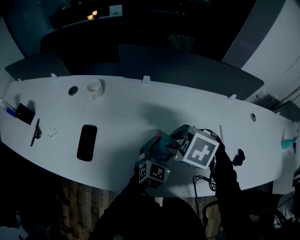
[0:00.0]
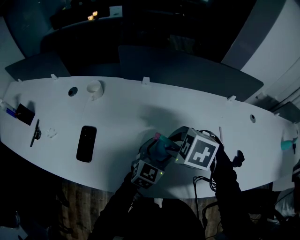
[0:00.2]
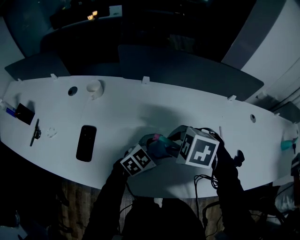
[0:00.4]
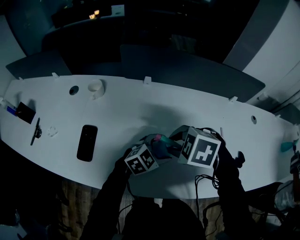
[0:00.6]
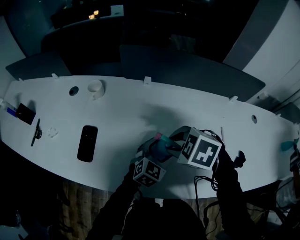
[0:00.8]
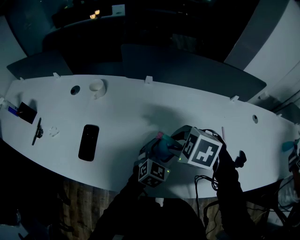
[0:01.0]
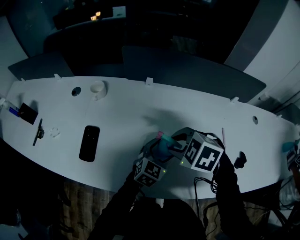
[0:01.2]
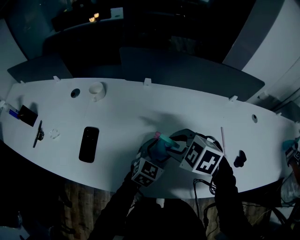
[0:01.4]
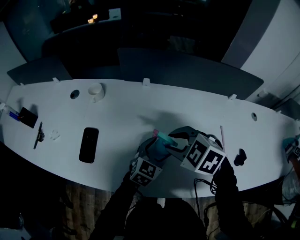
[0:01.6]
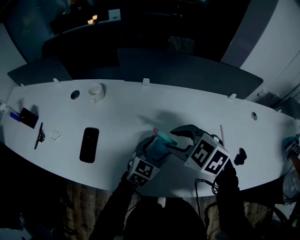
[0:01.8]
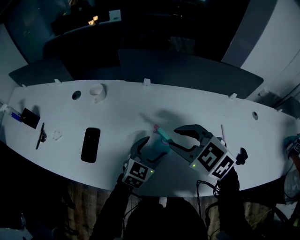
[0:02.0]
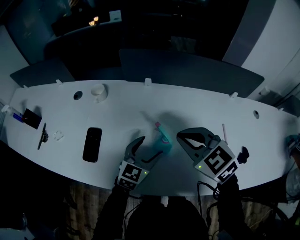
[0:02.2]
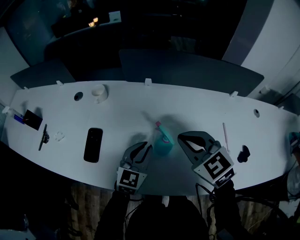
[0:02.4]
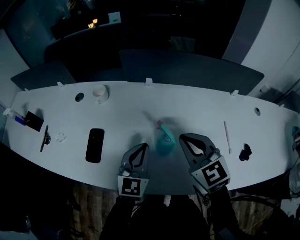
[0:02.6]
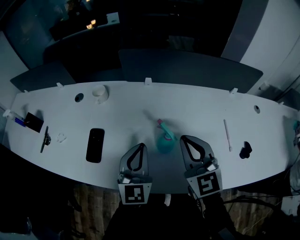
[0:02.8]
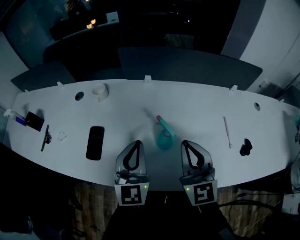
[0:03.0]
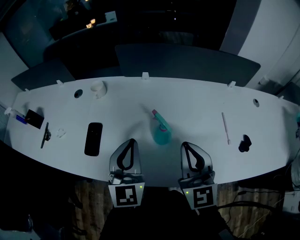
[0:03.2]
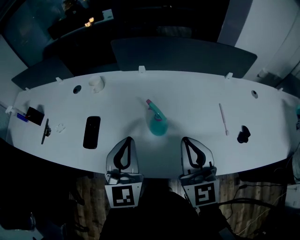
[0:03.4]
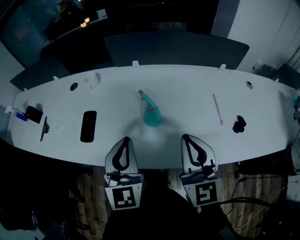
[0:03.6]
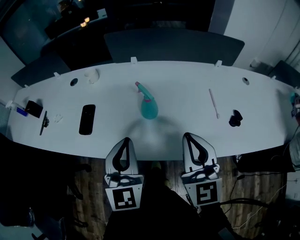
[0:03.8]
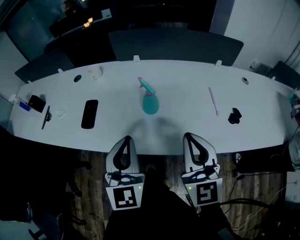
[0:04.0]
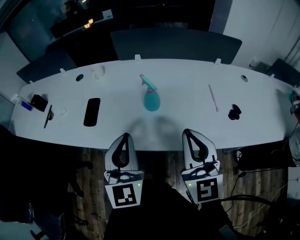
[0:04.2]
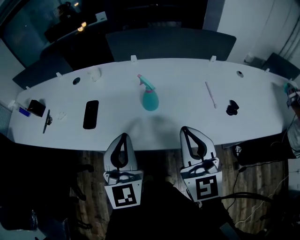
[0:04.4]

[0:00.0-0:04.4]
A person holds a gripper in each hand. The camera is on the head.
0:01.4 to 0:03.0: The right gripper travels upward by some 10 cm, tilts its fingers about 60 degrees upward, and closes. The left gripper goes roughly 20 cm upward and to the left, turns by some 40 degrees, and closes its fingers.
0:03.0 to 0:04.4: The two grippers go some 20 cm backward.

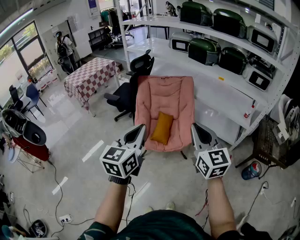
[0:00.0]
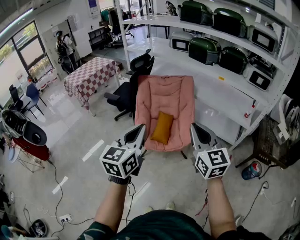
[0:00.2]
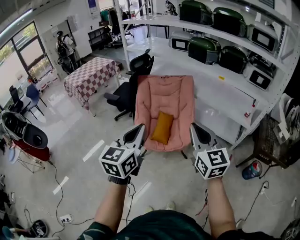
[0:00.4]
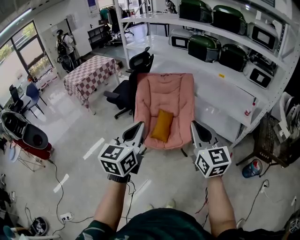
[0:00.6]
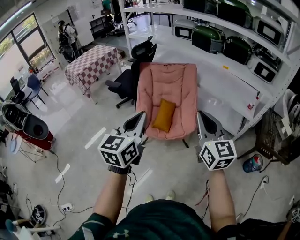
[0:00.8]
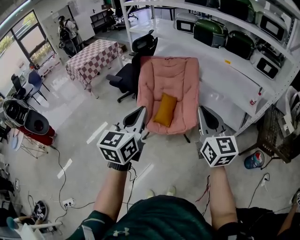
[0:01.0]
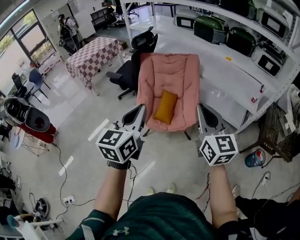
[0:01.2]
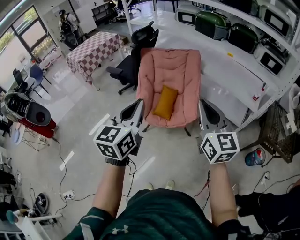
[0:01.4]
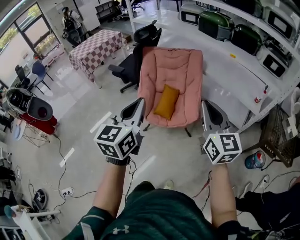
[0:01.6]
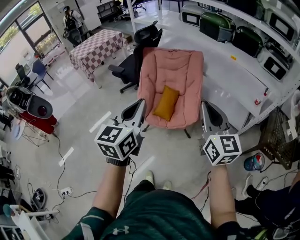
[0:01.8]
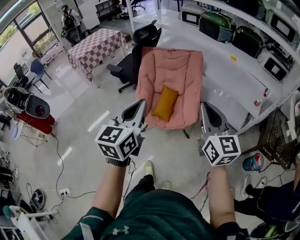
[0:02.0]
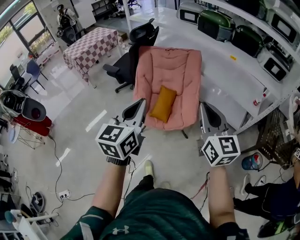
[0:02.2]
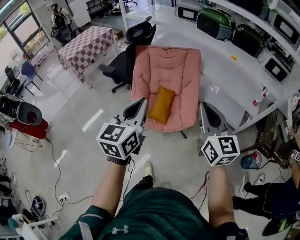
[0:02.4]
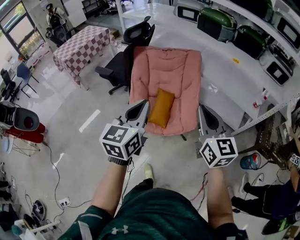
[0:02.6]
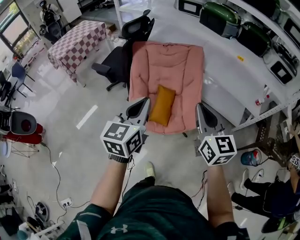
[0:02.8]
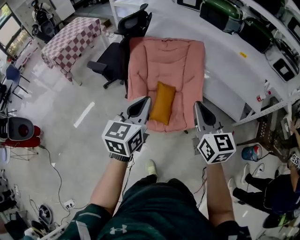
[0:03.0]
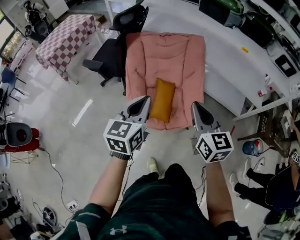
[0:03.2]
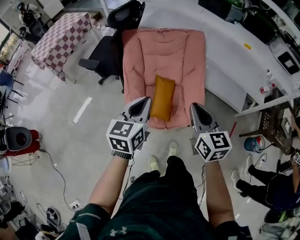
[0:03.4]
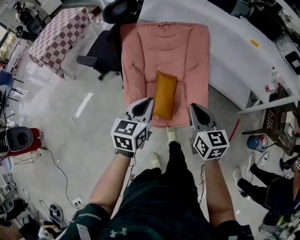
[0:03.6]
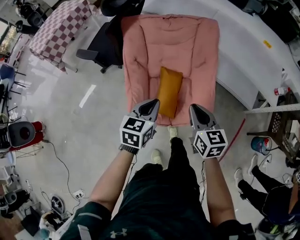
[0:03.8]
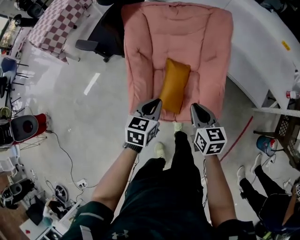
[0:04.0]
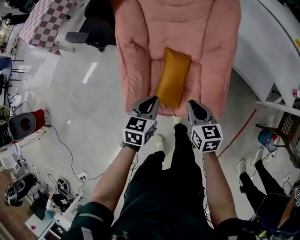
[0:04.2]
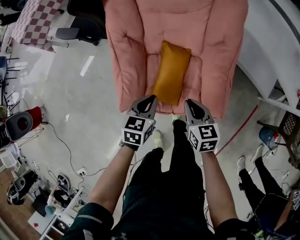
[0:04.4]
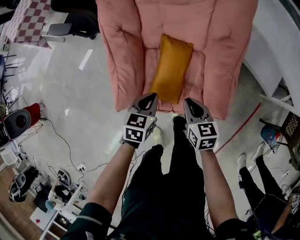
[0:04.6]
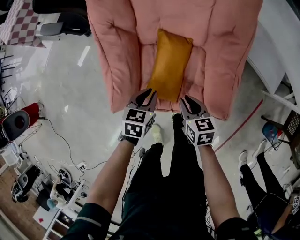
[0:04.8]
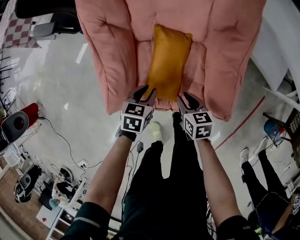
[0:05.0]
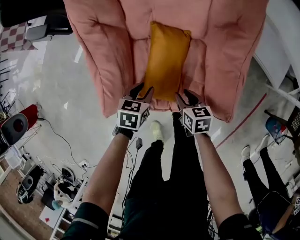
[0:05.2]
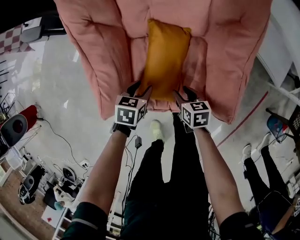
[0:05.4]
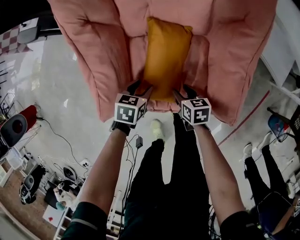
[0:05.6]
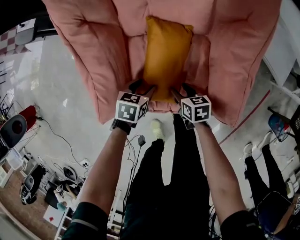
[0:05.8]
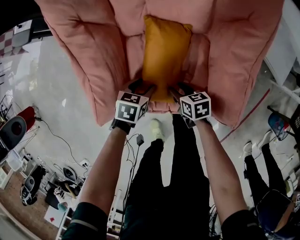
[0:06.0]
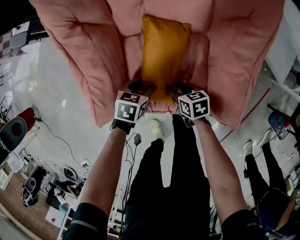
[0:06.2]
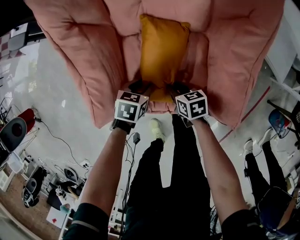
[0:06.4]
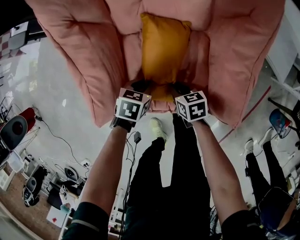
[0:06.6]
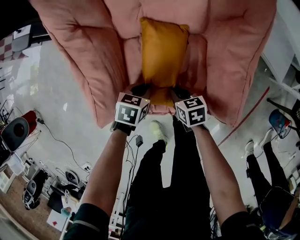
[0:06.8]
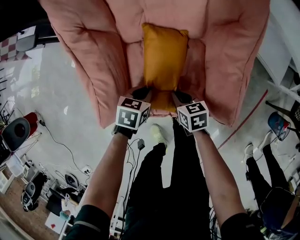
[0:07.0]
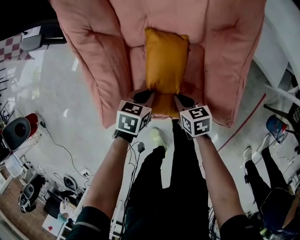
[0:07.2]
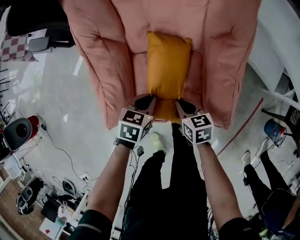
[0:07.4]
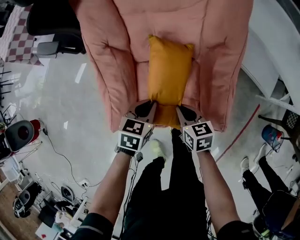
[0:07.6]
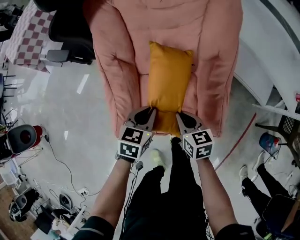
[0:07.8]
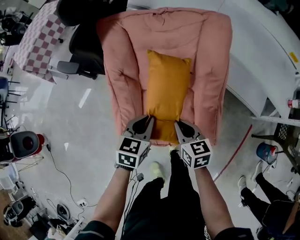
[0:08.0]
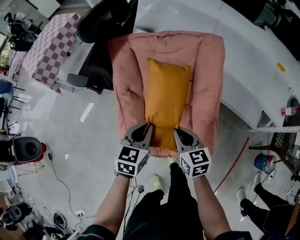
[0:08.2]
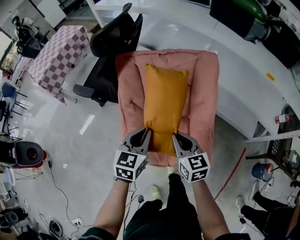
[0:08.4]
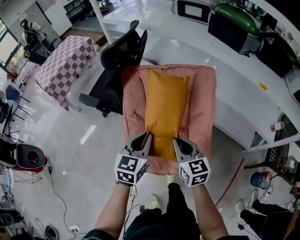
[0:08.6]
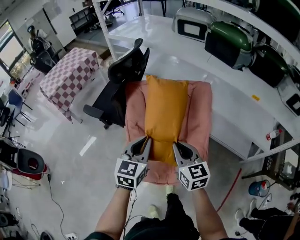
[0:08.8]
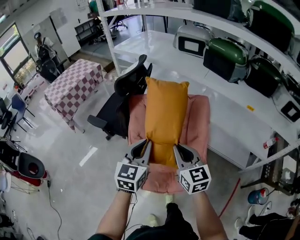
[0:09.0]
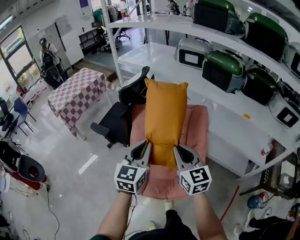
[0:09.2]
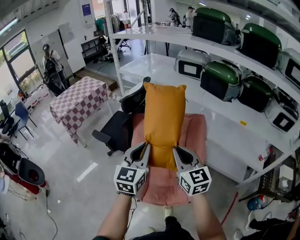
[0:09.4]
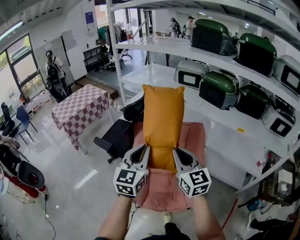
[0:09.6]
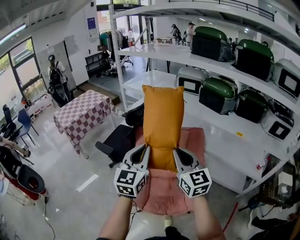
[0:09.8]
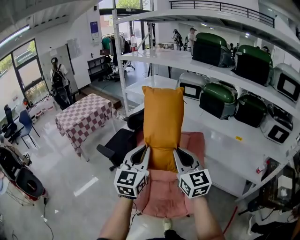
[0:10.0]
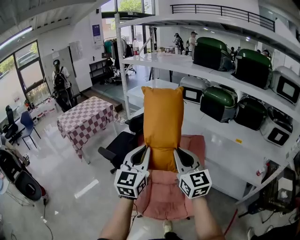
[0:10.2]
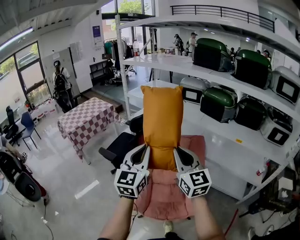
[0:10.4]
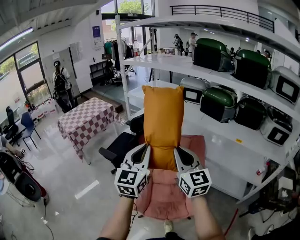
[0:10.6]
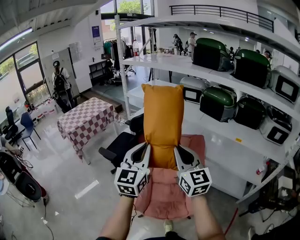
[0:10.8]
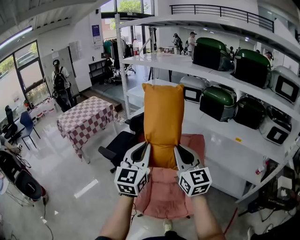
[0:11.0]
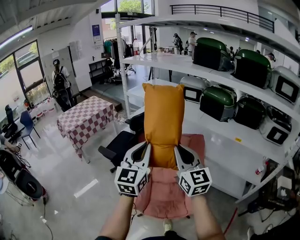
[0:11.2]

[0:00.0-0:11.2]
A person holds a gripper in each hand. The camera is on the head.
0:00.0 to 0:01.6: The right gripper travels to the right by roughly 5 cm.
0:01.6 to 0:03.2: The left gripper moves forward and downward, some 30 cm. The right gripper shifts about 30 cm forward, downward and to the left.
0:03.2 to 0:04.8: The two grippers go roughly 50 cm downward. The left gripper angles its fingers downward, by approximately 40 degrees, while the right gripper tips its fingers downward by approximately 30 degrees.
0:04.8 to 0:06.4: Both grippers travel together downward, roughly 20 cm. The right gripper opens, then closes again; the left gripper opens up.
0:06.4 to 0:08.0: The two grippers go some 35 cm upward. The left gripper turns by about 30 degrees, and closes its fingers. Meanwhile the right gripper swivels approximately 30 degrees.
0:08.0 to 0:09.6: Both grippers move upward, roughly 40 cm. The right gripper angles its fingers upward, by about 30 degrees. The left gripper angles its fingers upward, by approximately 40 degrees.
0:09.6 to 0:11.2: The grippers both shift upward by roughly 10 cm.

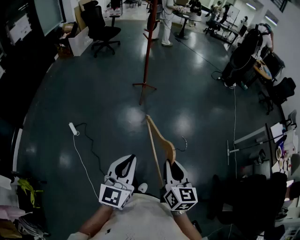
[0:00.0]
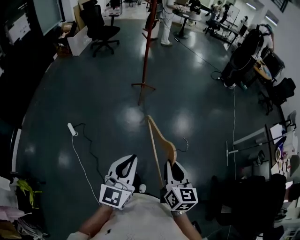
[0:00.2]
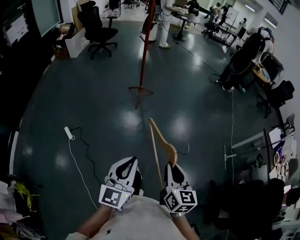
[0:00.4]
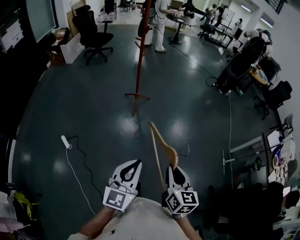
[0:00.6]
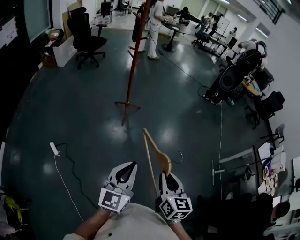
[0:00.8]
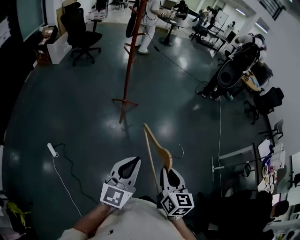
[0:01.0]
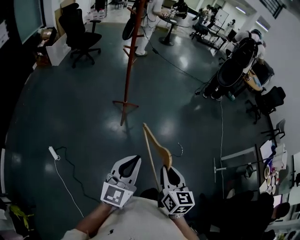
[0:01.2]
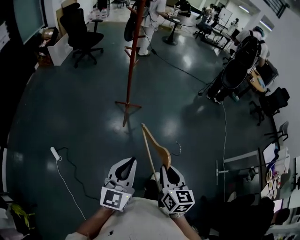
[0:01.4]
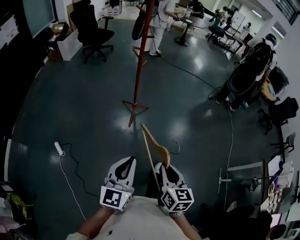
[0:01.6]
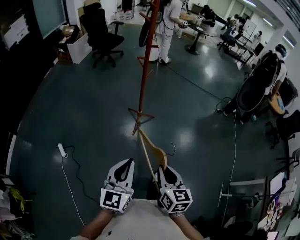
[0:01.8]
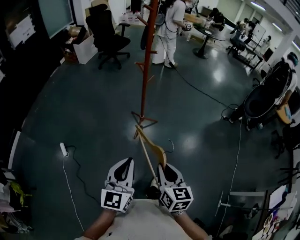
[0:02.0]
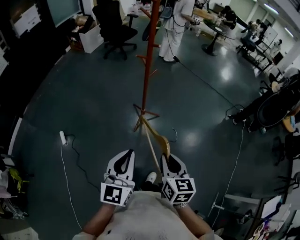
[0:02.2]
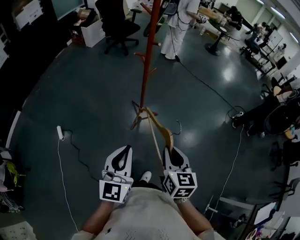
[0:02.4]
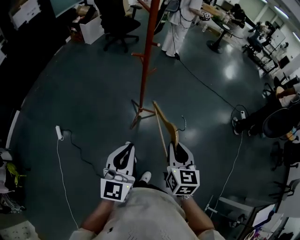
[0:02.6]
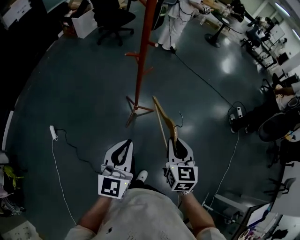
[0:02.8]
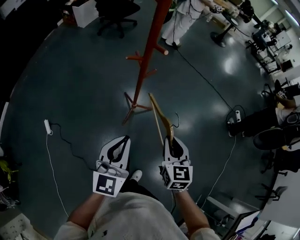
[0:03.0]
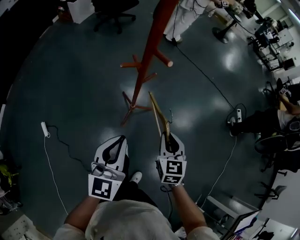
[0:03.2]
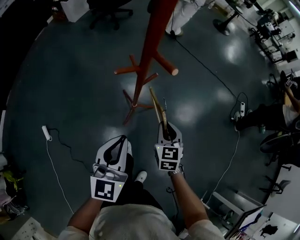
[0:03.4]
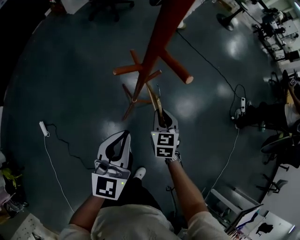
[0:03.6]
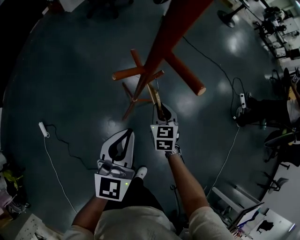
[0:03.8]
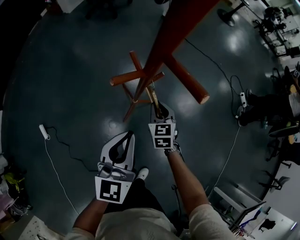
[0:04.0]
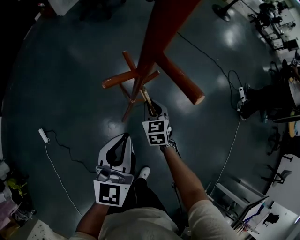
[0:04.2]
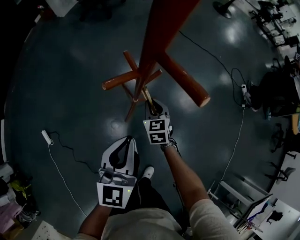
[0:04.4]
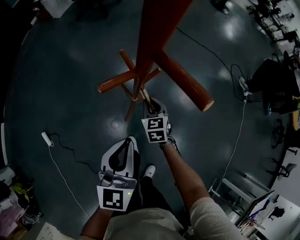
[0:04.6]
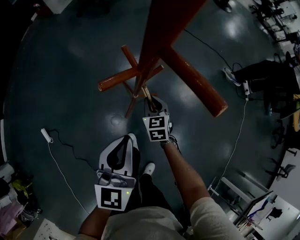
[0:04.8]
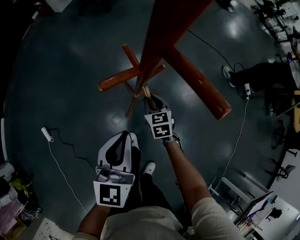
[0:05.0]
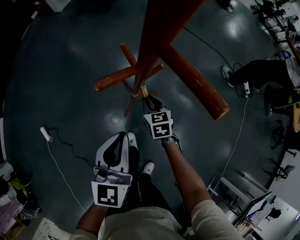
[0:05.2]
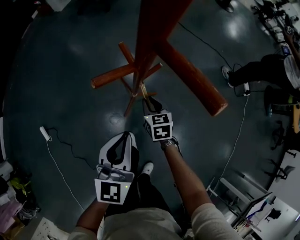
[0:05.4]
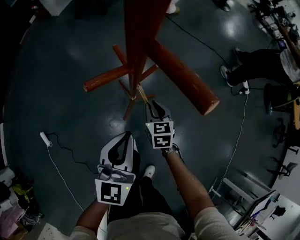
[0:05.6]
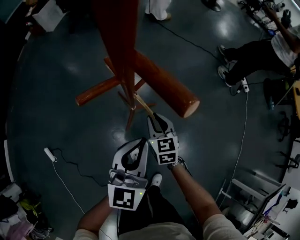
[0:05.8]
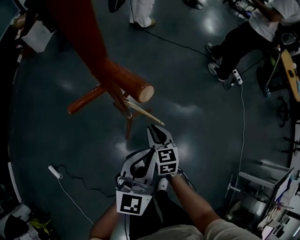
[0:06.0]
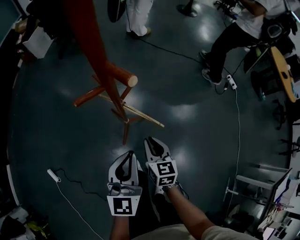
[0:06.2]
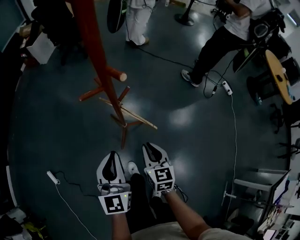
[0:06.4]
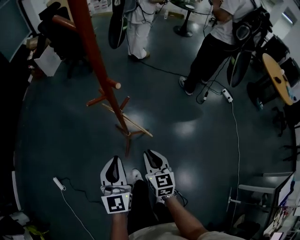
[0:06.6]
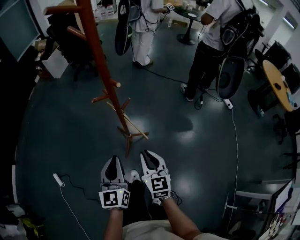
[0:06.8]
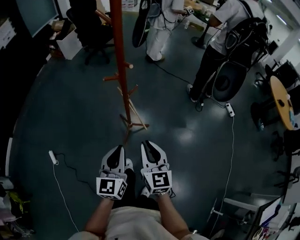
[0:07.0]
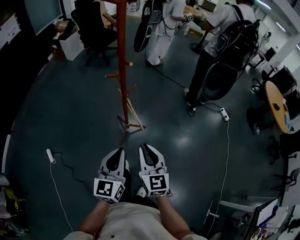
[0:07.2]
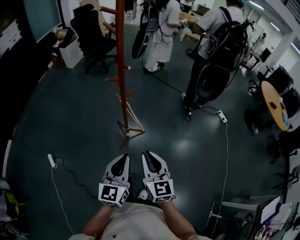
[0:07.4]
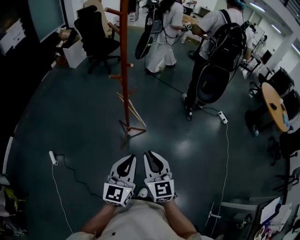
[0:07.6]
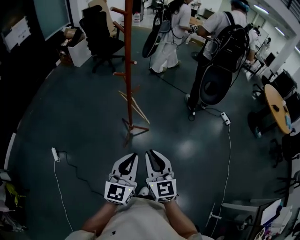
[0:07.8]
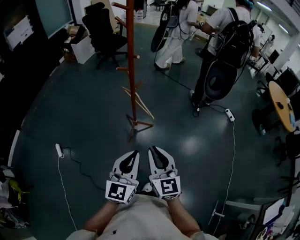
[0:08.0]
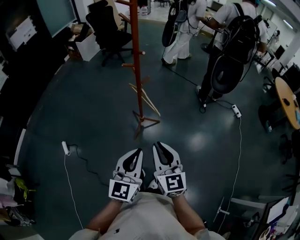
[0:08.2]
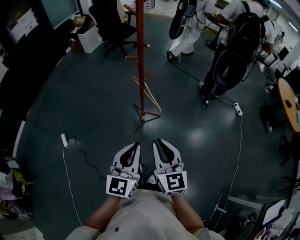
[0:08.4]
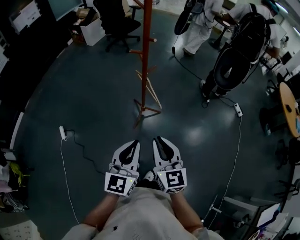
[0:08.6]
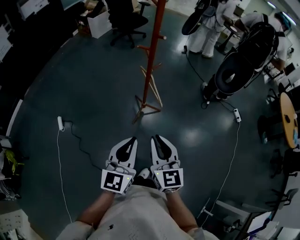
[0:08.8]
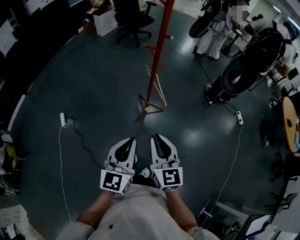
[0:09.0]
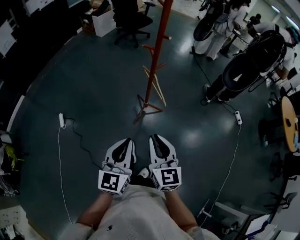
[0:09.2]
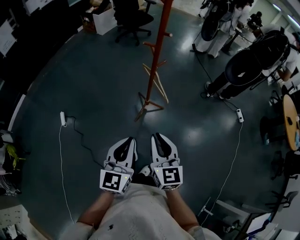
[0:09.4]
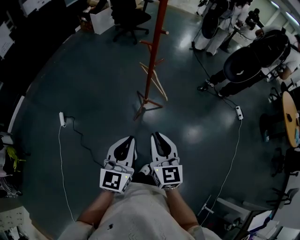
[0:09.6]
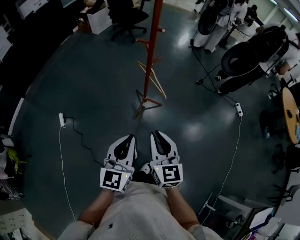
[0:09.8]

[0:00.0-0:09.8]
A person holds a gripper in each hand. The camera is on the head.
0:00.0 to 0:01.4: The two grippers go about 35 cm forward.
0:01.4 to 0:02.8: Both grippers move forward, approximately 40 cm. The left gripper turns by about 30 degrees. Meanwhile the right gripper turns by some 20 degrees.
0:02.8 to 0:04.2: The right gripper is displaced forward and downward by roughly 50 cm, while the left gripper shifts about 30 cm forward and downward.
0:04.2 to 0:05.6: The left gripper changes place by some 5 cm.
0:05.6 to 0:07.0: The left gripper goes approximately 20 cm backward and upward. Meanwhile the right gripper moves upward and backward, roughly 40 cm, and changes its angle by some 30 degrees.
0:07.0 to 0:08.4: The right gripper travels backward and upward by roughly 20 cm, while the left gripper is displaced backward by roughly 20 cm.
